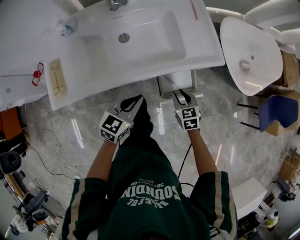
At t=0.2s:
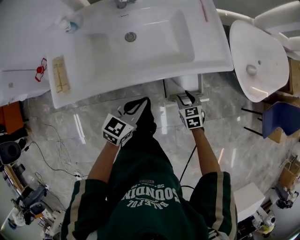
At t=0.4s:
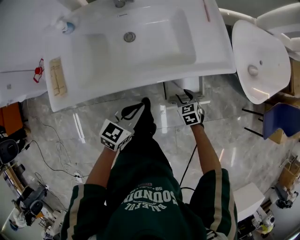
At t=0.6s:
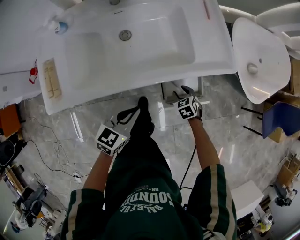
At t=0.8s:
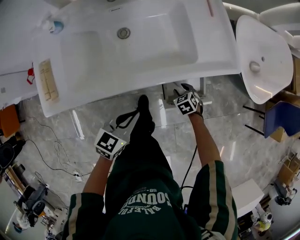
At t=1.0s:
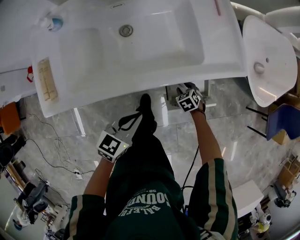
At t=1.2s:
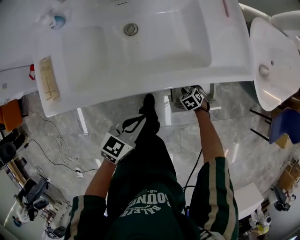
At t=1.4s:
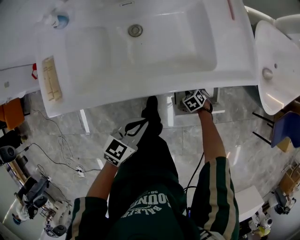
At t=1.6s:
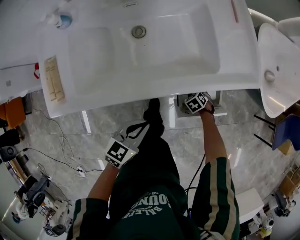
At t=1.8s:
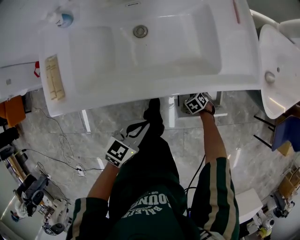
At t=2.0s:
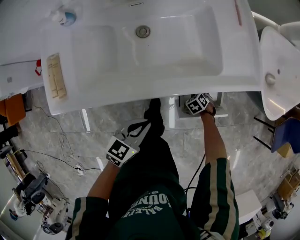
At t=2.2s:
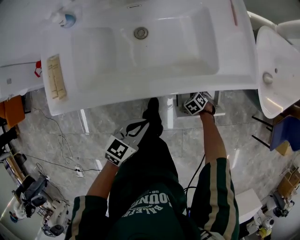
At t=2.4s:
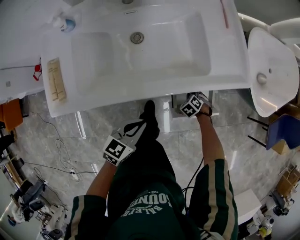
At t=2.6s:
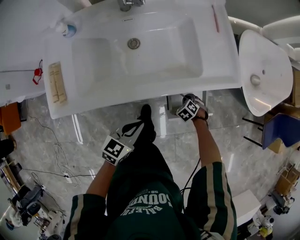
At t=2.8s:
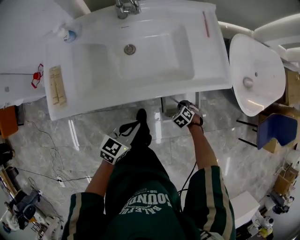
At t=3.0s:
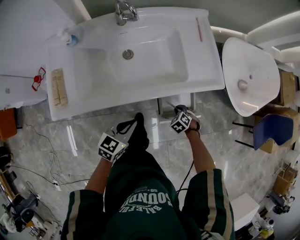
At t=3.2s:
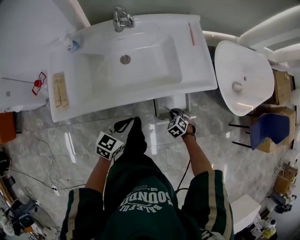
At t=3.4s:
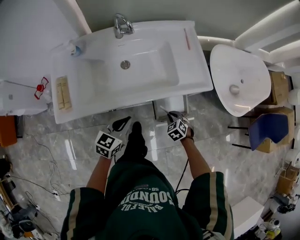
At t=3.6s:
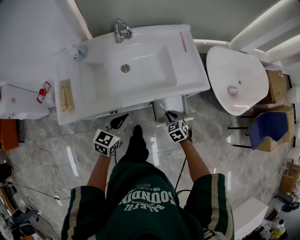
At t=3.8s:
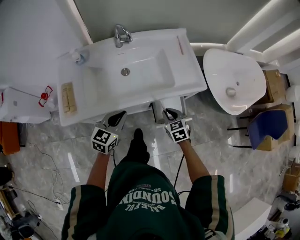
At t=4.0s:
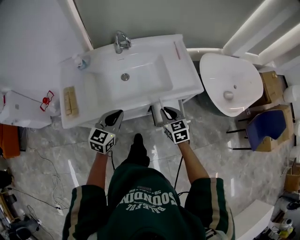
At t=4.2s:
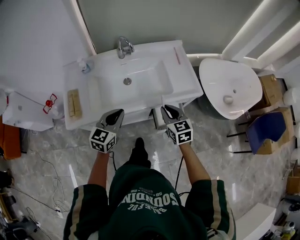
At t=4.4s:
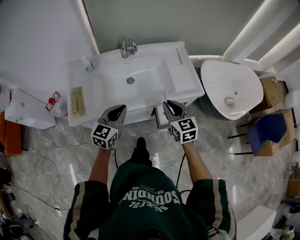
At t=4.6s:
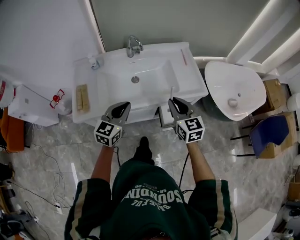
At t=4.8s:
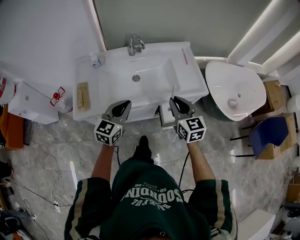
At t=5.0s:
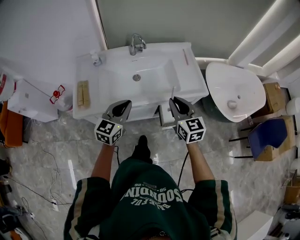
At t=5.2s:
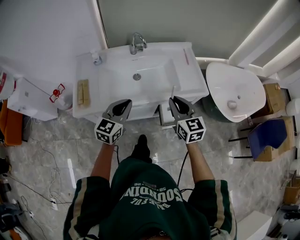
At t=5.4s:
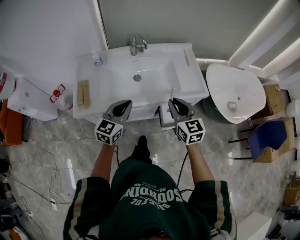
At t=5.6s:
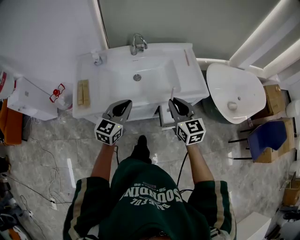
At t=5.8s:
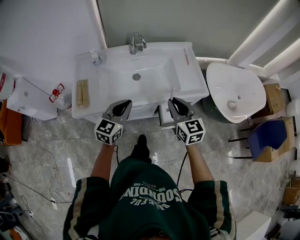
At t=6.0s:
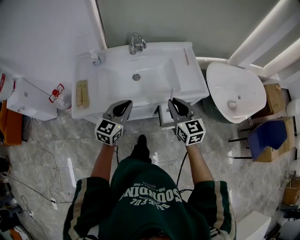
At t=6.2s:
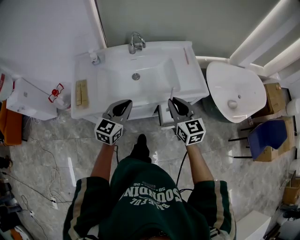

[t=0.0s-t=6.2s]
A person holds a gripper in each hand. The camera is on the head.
t=0.0s to t=1.6s: The left gripper travels downward by some 10 cm, while the right gripper moves downward, some 30 cm, and tips its fingers downward by about 40 degrees.
t=1.6s to t=3.2s: The left gripper travels upward by roughly 10 cm; the right gripper heads upward, covering about 20 cm, and closes.
t=3.2s to t=4.6s: The left gripper goes some 20 cm upward, and changes its angle by approximately 20 degrees, while the right gripper is displaced upward by about 40 cm, and tilts its fingers roughly 50 degrees upward.
t=4.6s to t=6.2s: There are only small adjustments of the grippers.

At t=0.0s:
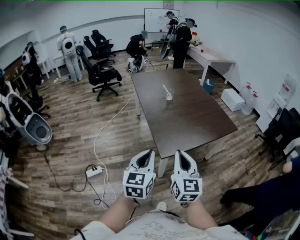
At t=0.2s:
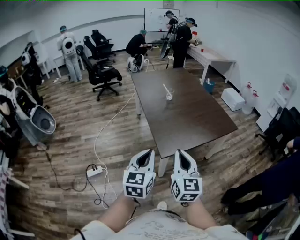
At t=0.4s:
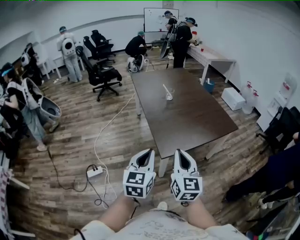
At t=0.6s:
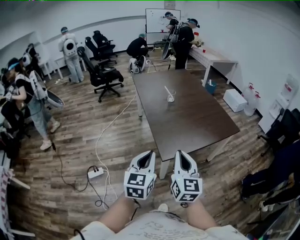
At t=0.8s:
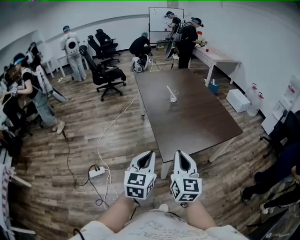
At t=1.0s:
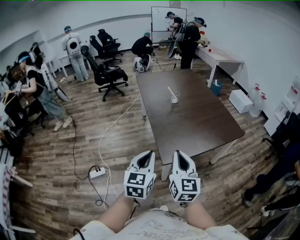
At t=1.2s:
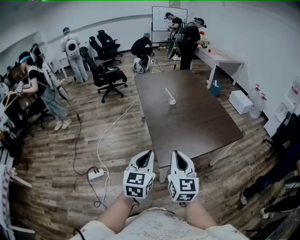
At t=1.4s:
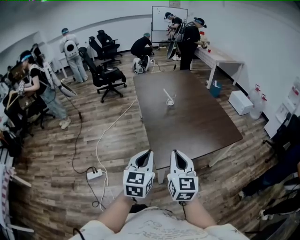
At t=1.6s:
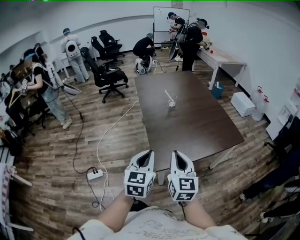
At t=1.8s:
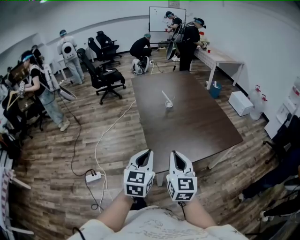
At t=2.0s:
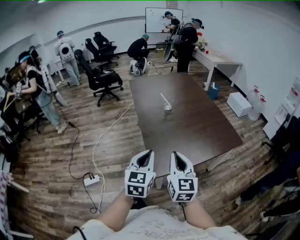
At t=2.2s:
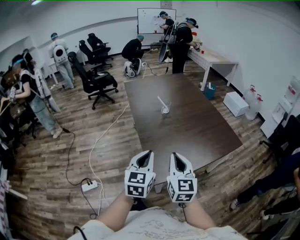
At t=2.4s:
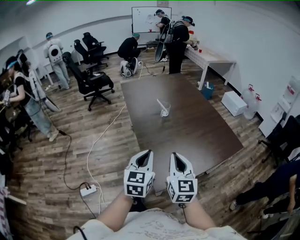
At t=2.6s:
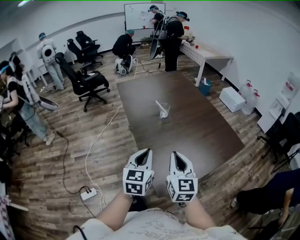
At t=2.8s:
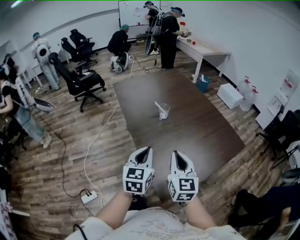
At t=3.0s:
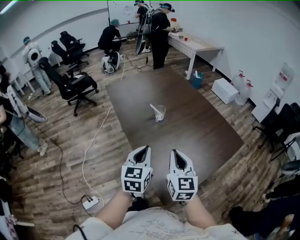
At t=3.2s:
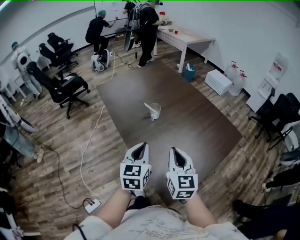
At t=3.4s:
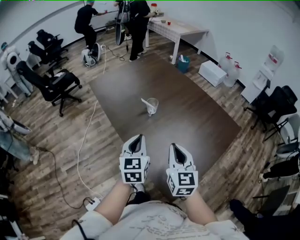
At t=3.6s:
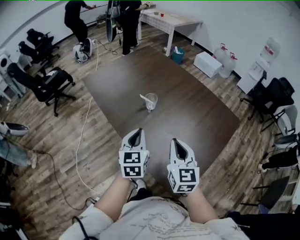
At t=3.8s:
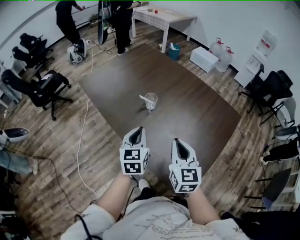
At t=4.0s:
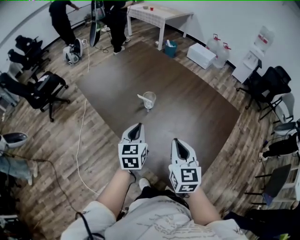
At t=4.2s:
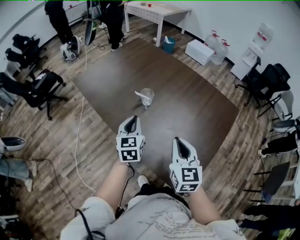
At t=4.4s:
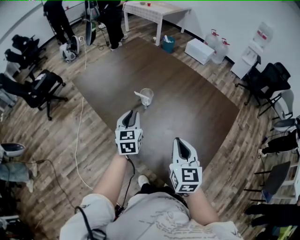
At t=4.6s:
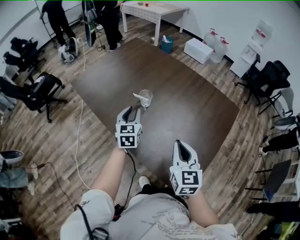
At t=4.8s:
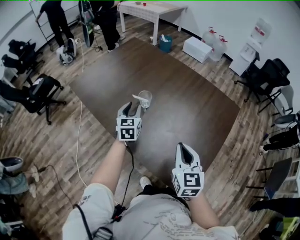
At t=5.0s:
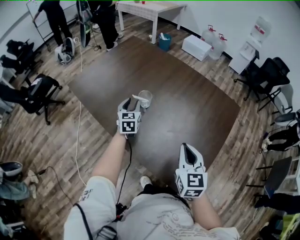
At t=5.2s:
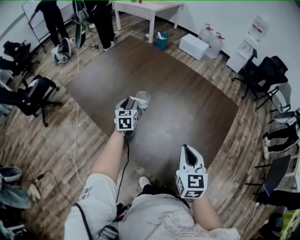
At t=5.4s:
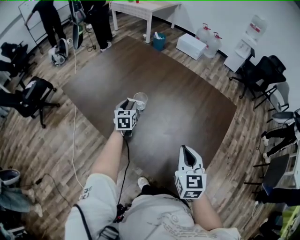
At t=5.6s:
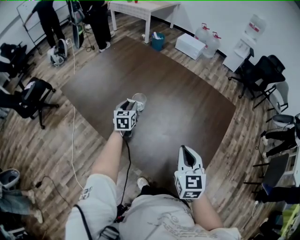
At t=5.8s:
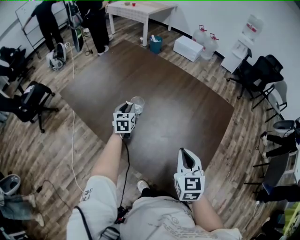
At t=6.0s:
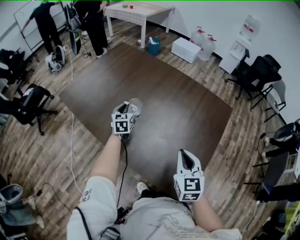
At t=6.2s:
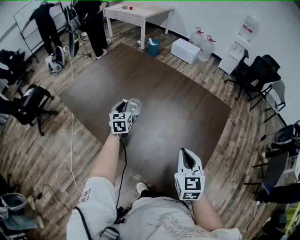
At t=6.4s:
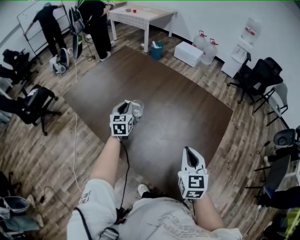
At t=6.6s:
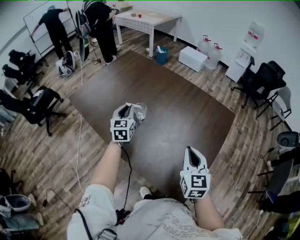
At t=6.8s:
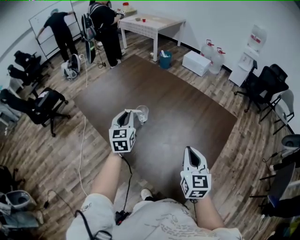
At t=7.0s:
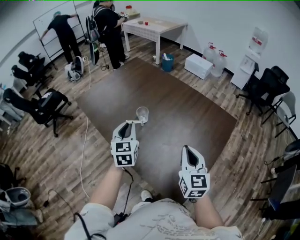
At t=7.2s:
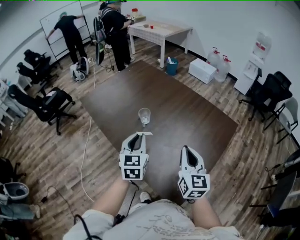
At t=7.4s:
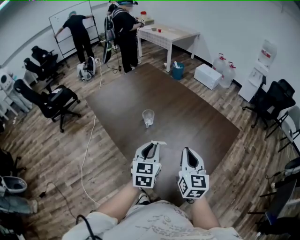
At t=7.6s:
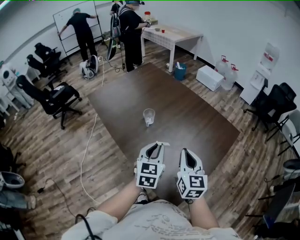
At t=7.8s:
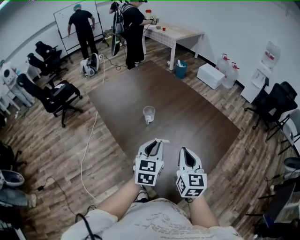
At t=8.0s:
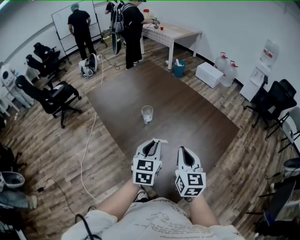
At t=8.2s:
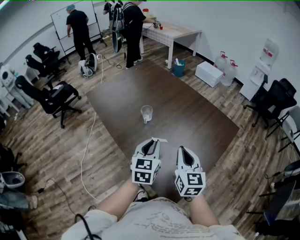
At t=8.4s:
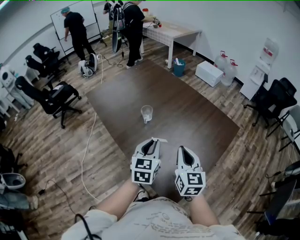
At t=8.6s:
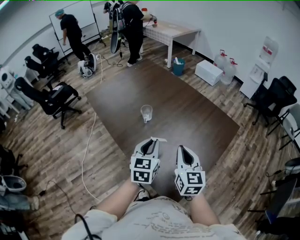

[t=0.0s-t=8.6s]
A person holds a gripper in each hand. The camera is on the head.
t=0.0s to t=1.4s: The right gripper is displaced forward by approximately 10 cm. Meanwhile the left gripper is displaced forward and to the right by approximately 10 cm.
t=1.4s to t=2.8s: The two grippers go about 25 cm forward.
t=2.8s to t=4.4s: The left gripper shifts some 30 cm forward. Meanwhile the right gripper heads forward and to the left, covering some 15 cm, and swivels approximately 20 degrees.
t=4.4s to t=5.8s: The right gripper shifts by about 5 cm; the left gripper is displaced forward and downward by some 20 cm.
t=5.8s to t=7.2s: The left gripper shifts some 30 cm backward and upward; the right gripper travels upward by some 5 cm.
t=7.2s to t=8.6s: The left gripper heads to the right, covering some 5 cm.

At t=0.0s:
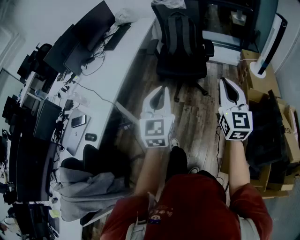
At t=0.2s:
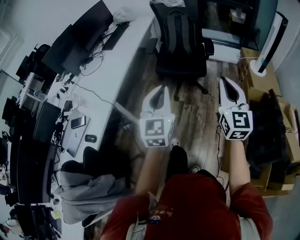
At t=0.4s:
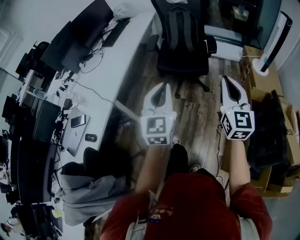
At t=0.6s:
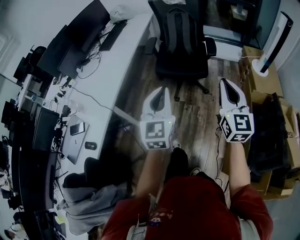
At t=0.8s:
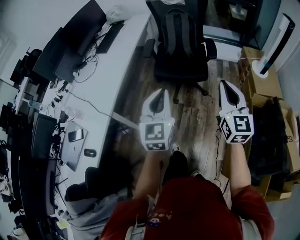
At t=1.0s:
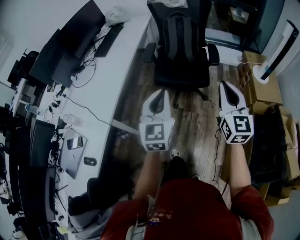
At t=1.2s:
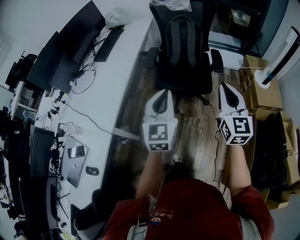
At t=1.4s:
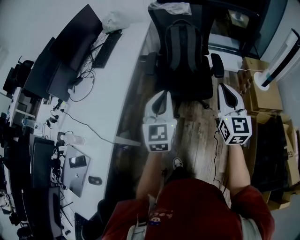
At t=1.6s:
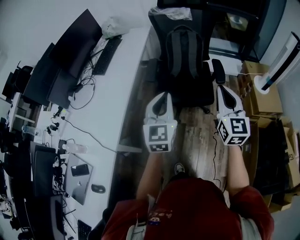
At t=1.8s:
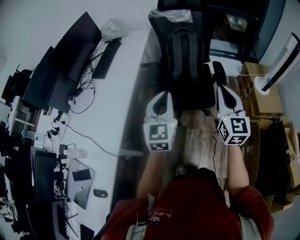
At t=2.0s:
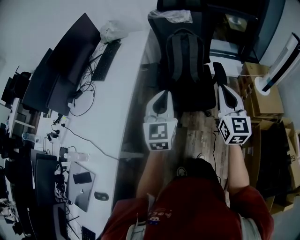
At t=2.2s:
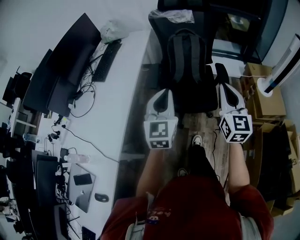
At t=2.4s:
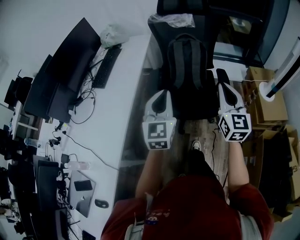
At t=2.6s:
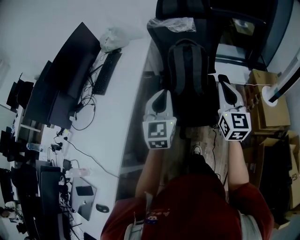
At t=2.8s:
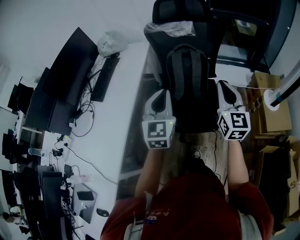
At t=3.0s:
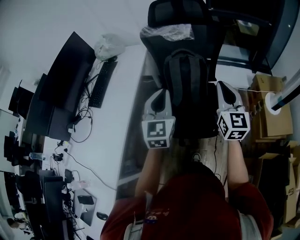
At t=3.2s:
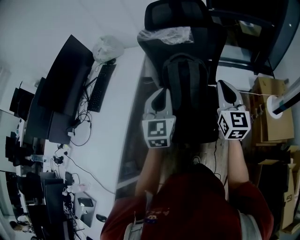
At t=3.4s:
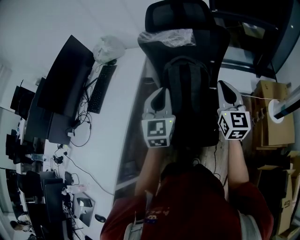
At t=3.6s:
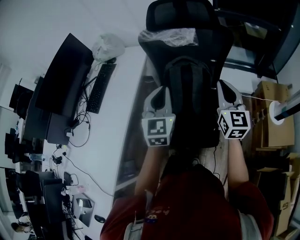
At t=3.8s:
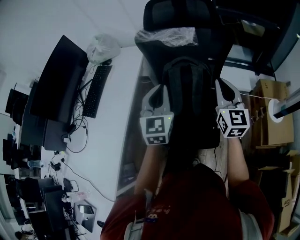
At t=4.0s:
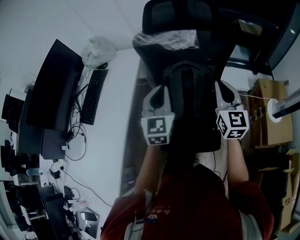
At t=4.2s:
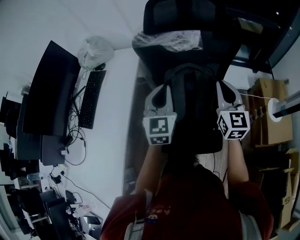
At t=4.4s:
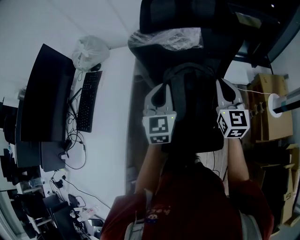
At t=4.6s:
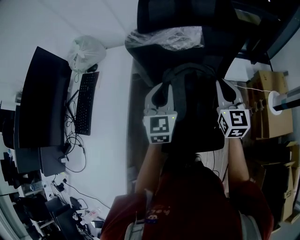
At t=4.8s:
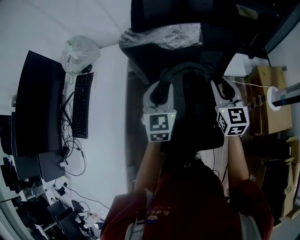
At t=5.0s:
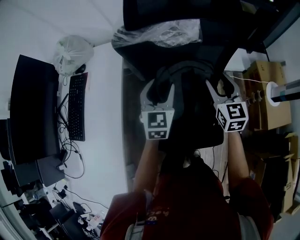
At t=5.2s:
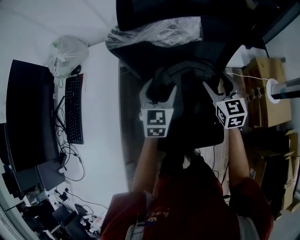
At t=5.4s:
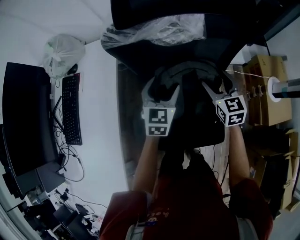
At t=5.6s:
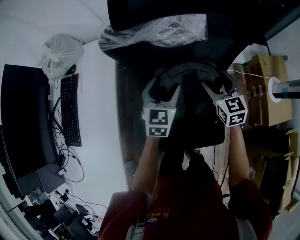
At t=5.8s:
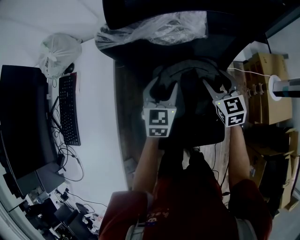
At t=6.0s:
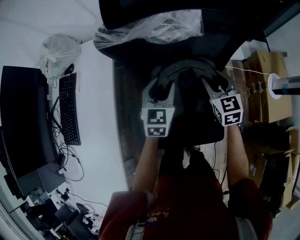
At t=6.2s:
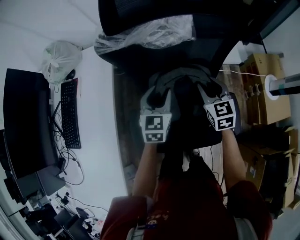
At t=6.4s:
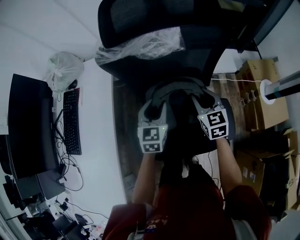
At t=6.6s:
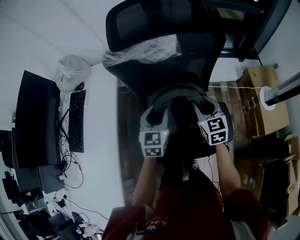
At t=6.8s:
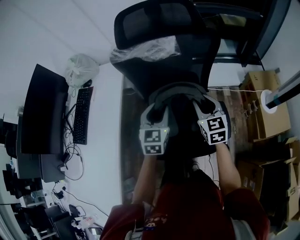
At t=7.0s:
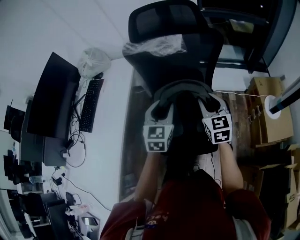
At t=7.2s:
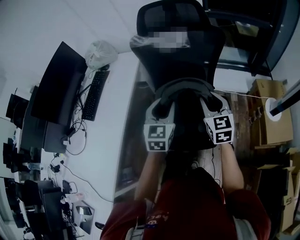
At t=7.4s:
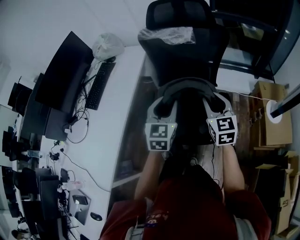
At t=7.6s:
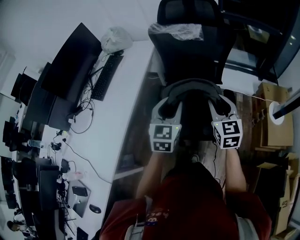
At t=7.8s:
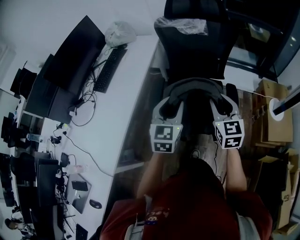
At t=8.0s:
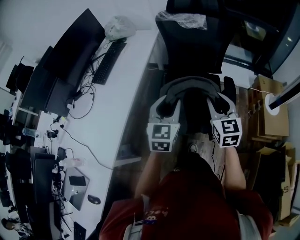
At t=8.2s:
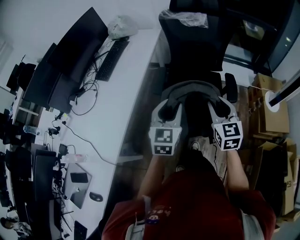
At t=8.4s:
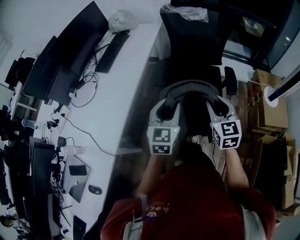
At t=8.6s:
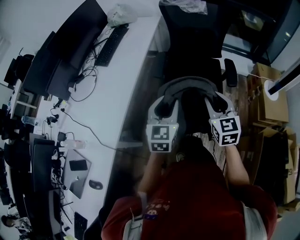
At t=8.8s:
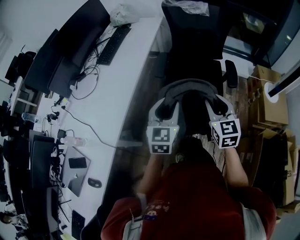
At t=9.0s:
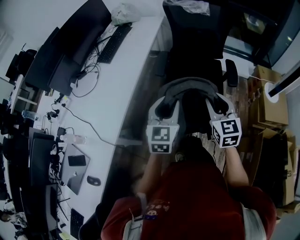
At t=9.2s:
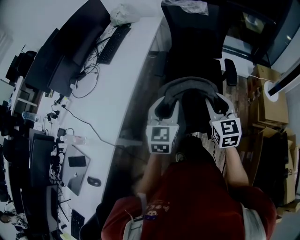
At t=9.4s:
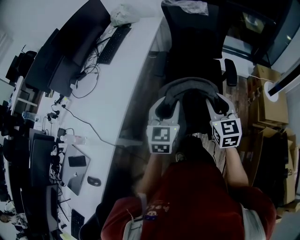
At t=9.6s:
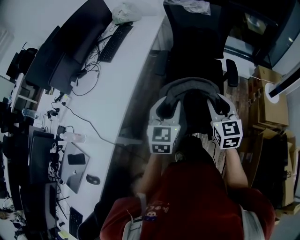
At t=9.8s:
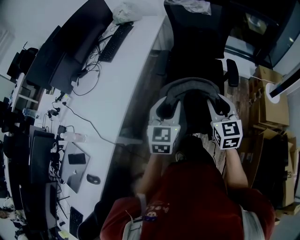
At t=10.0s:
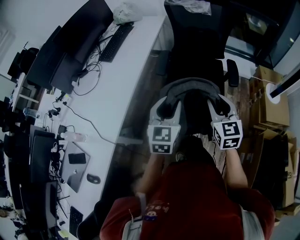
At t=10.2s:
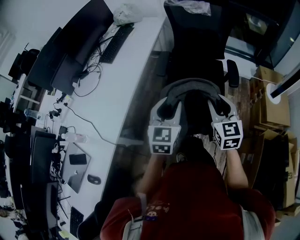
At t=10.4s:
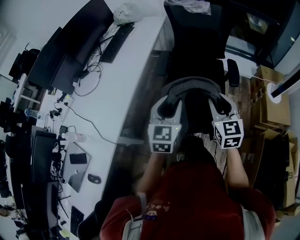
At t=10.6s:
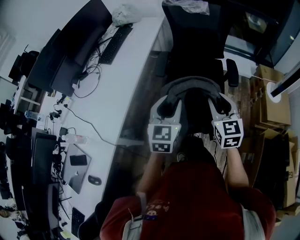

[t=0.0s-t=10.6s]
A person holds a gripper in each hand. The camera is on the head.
t=0.0s to t=1.6s: Both grippers travel together forward, about 35 cm.
t=1.6s to t=3.0s: Both grippers travel together forward, some 35 cm.
t=3.0s to t=4.6s: The two grippers go about 25 cm forward.
t=4.6s to t=6.0s: The two grippers go some 15 cm downward and forward. The right gripper opens up. Meanwhile the left gripper opens its fingers.
t=6.0s to t=7.6s: The two grippers go about 40 cm backward and upward.
t=7.6s to t=9.0s: Both grippers travel together backward and to the left, about 30 cm.
t=9.0s to t=10.6s: The grippers stay close to where they were, moving slightly.
